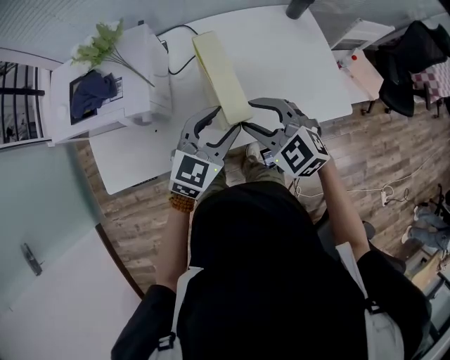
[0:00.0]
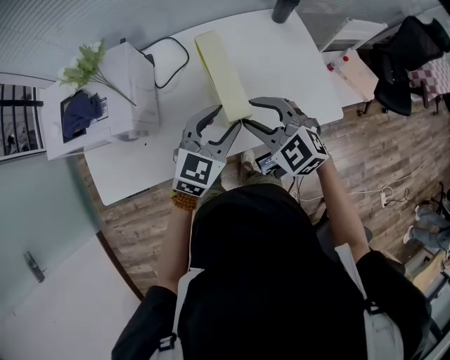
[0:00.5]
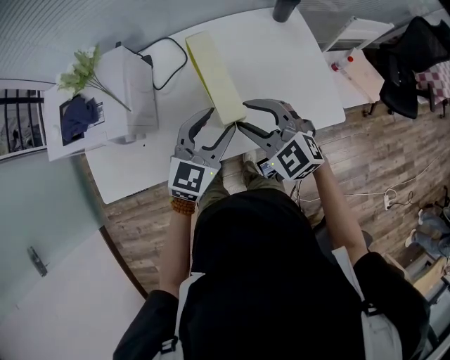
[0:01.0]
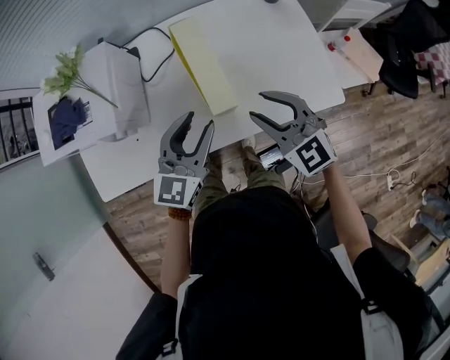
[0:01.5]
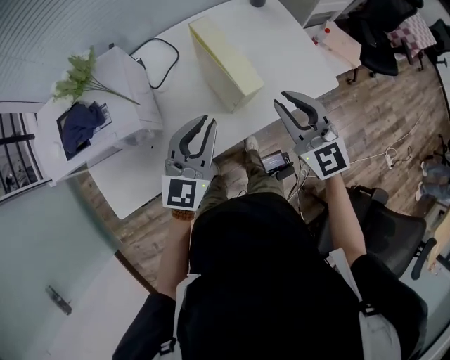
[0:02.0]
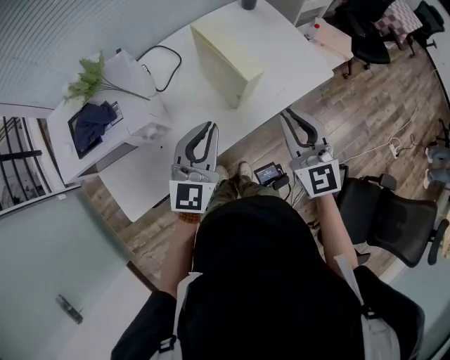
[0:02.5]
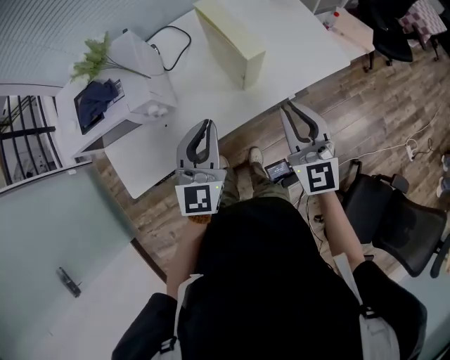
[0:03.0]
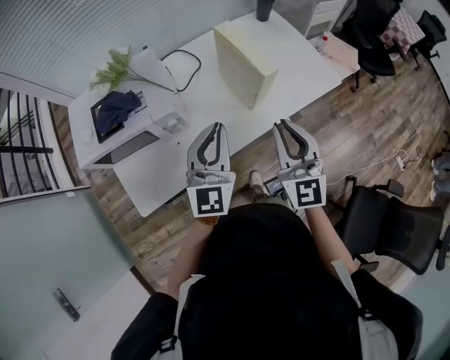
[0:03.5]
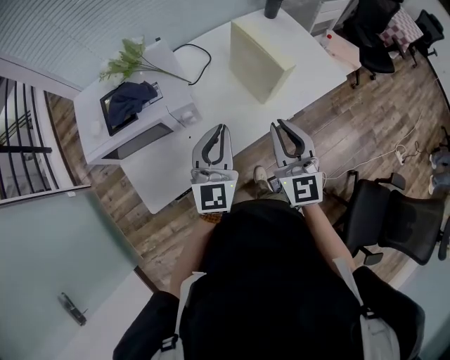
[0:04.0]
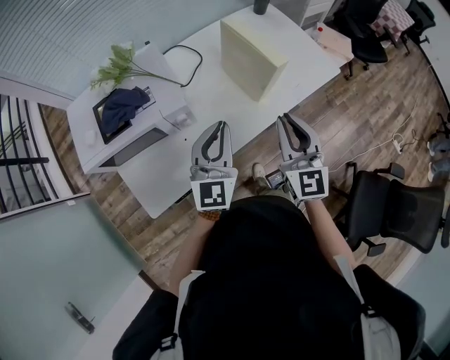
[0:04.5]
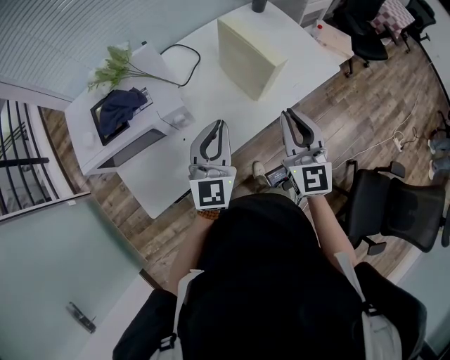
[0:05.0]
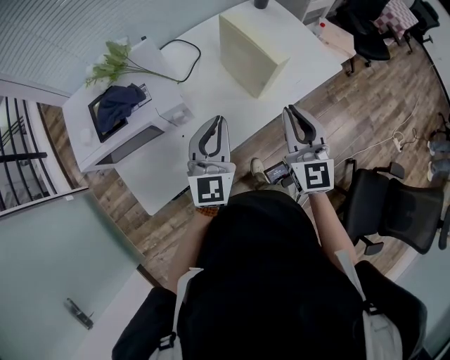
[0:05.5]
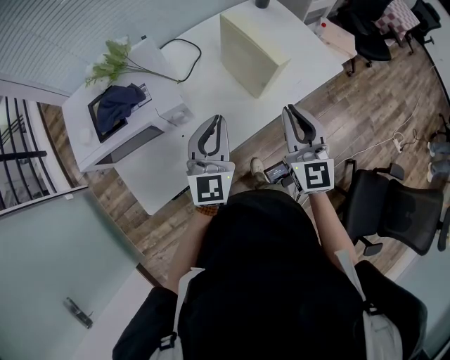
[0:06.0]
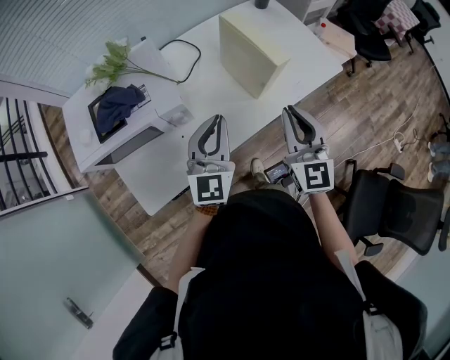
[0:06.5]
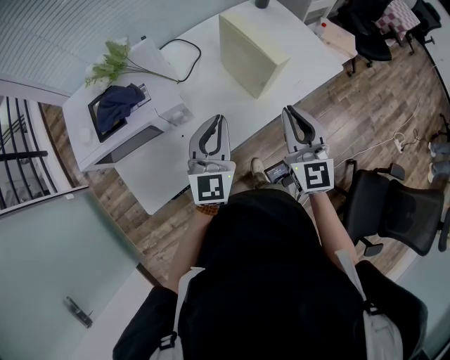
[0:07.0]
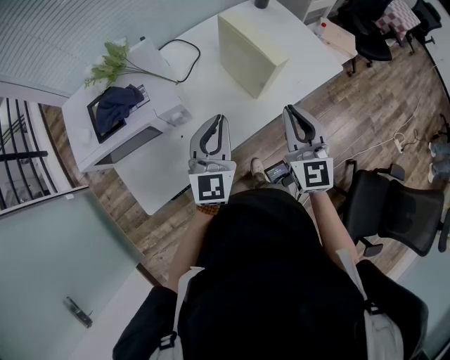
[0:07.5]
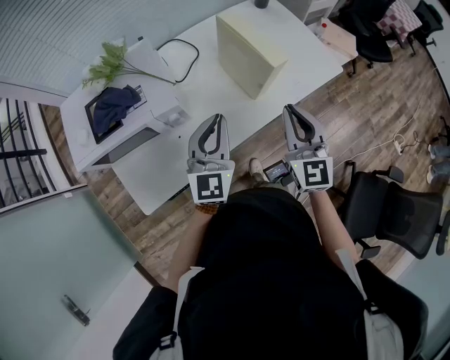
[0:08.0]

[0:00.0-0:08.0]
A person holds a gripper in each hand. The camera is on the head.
0:00.0 to 0:02.0: The right gripper goes some 10 cm to the right and upward, changes its angle by some 40 degrees, and closes up; the left gripper goes to the right and returns, approximately 5 cm each way, and closes.
0:02.0 to 0:04.0: The left gripper shifts approximately 15 cm to the left and backward. The right gripper heads backward and to the left, covering some 20 cm, and turns by about 20 degrees.
0:04.0 to 0:06.0: The right gripper moves approximately 5 cm.
0:06.0 to 0:08.0: There are only small adjustments of the grippers.

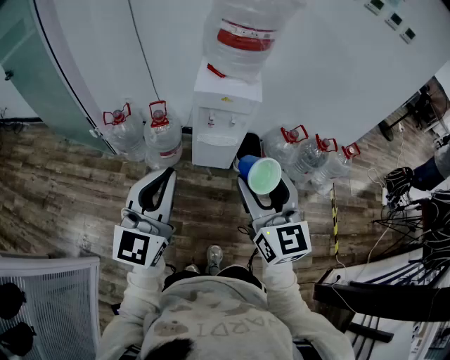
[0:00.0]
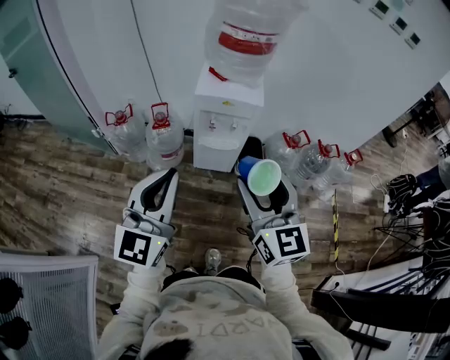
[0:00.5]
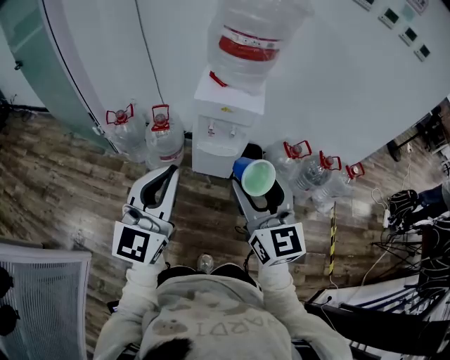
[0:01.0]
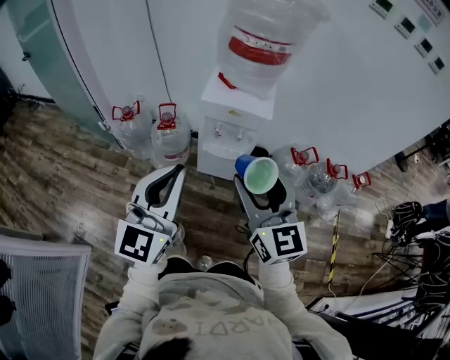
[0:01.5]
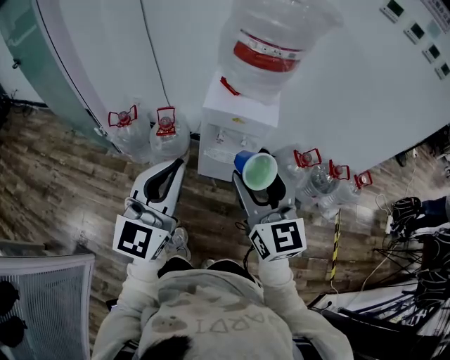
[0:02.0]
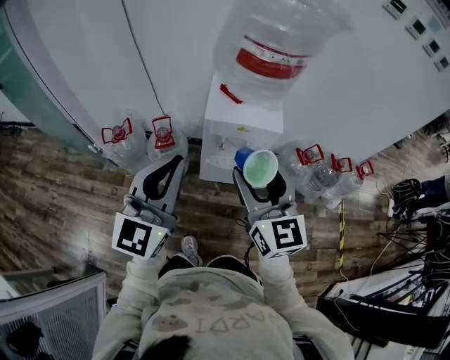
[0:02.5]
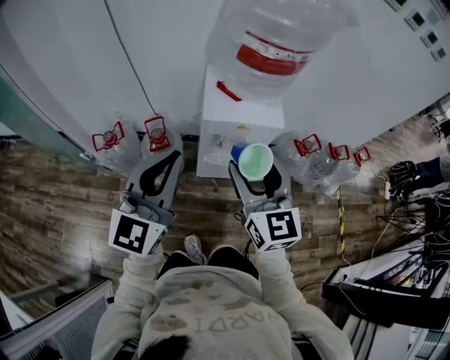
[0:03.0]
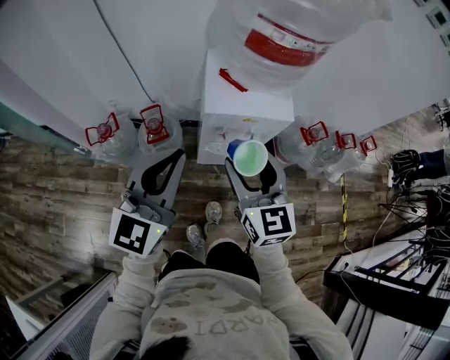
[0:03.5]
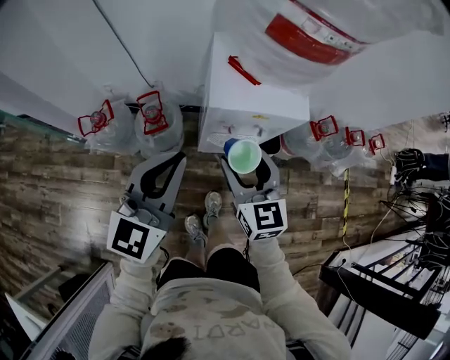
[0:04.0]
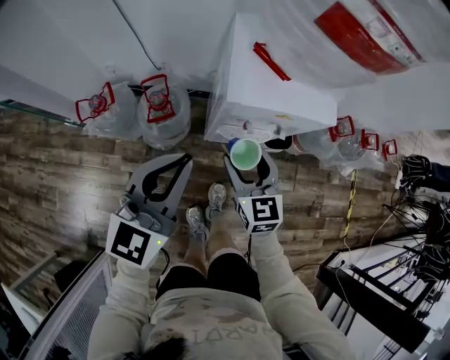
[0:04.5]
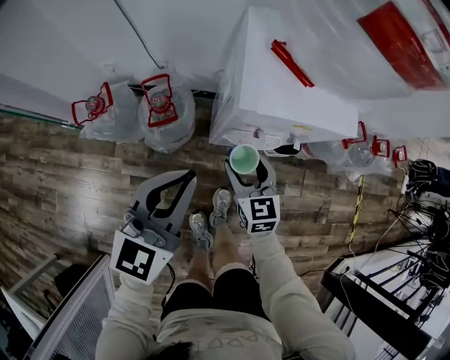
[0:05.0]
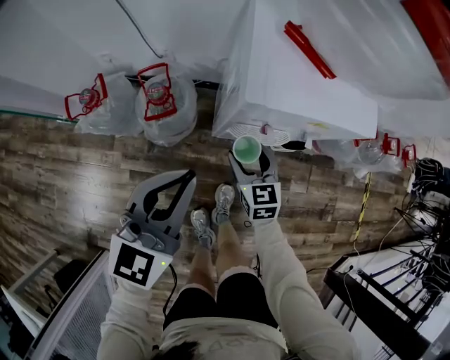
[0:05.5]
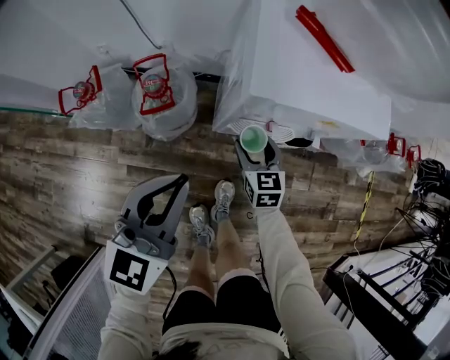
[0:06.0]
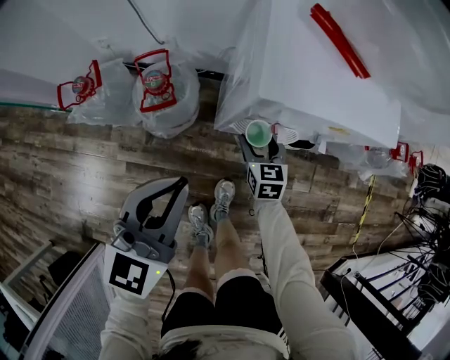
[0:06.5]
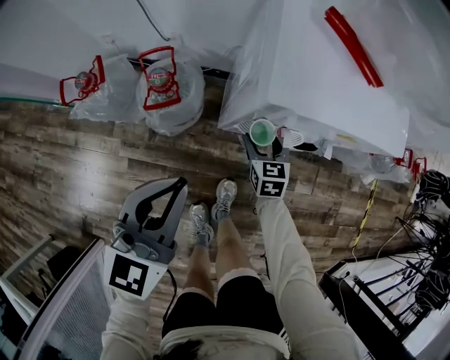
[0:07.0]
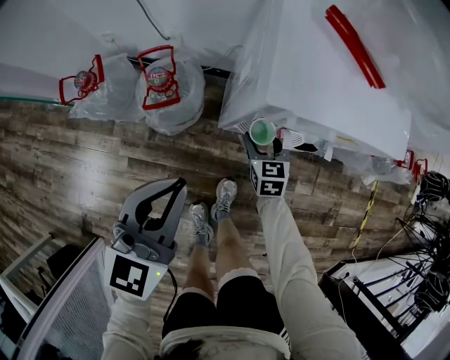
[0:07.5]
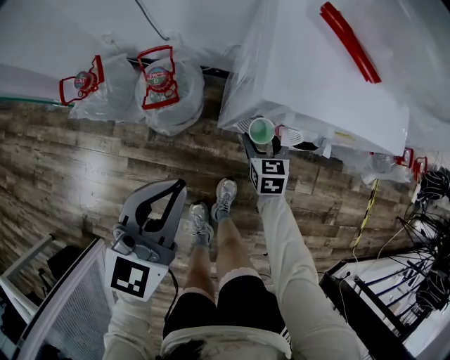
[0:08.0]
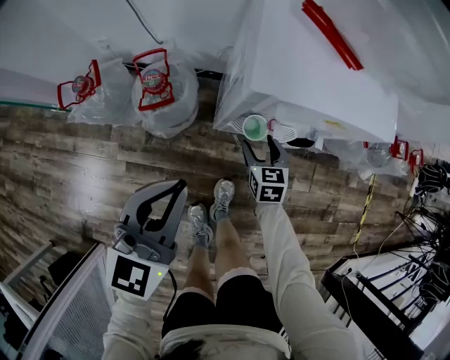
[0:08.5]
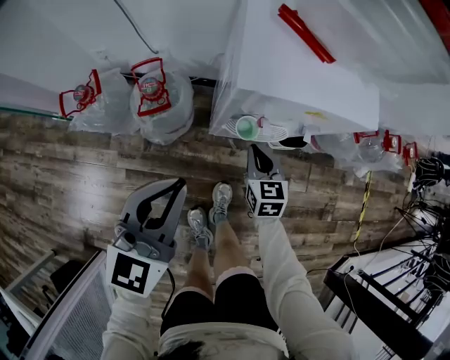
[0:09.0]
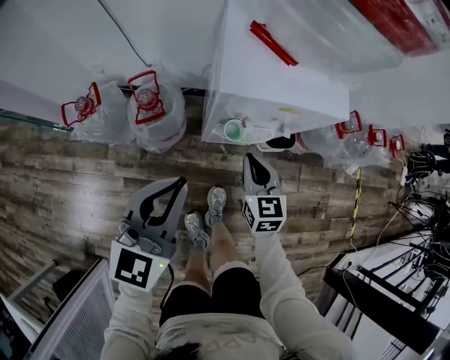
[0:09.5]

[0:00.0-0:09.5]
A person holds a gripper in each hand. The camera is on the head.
0:00.0 to 0:02.0: The grippers both shift forward by roughly 15 cm.
0:02.0 to 0:04.0: The right gripper shifts approximately 30 cm downward, forward and to the left; the left gripper is displaced forward, downward and to the left by roughly 25 cm.
0:04.0 to 0:05.5: The right gripper moves downward, roughly 30 cm. Meanwhile the left gripper shifts approximately 15 cm downward.
0:05.5 to 0:07.5: The right gripper travels downward and forward by approximately 15 cm; the left gripper travels downward by approximately 5 cm.
0:07.5 to 0:09.5: The left gripper shifts roughly 10 cm upward; the right gripper is displaced upward and backward by some 20 cm, and closes up.

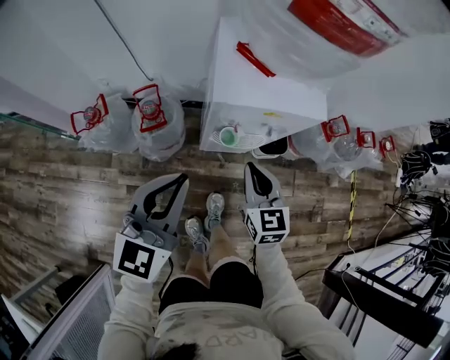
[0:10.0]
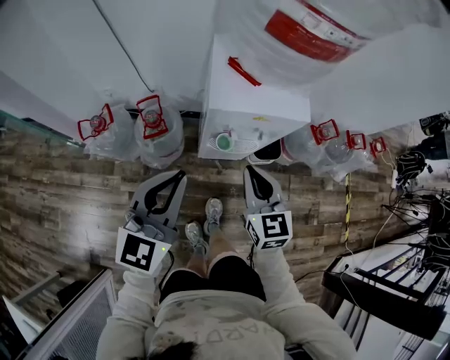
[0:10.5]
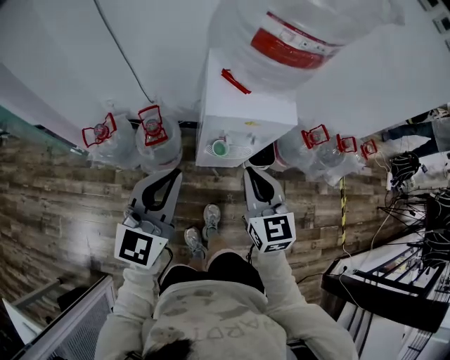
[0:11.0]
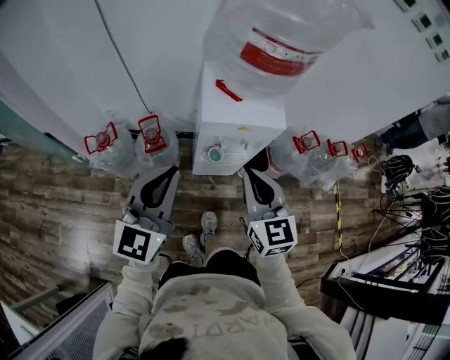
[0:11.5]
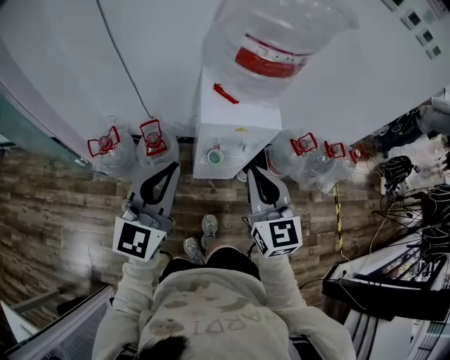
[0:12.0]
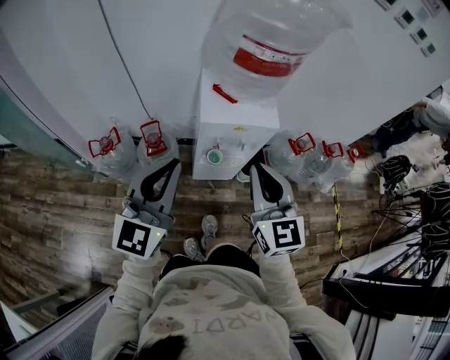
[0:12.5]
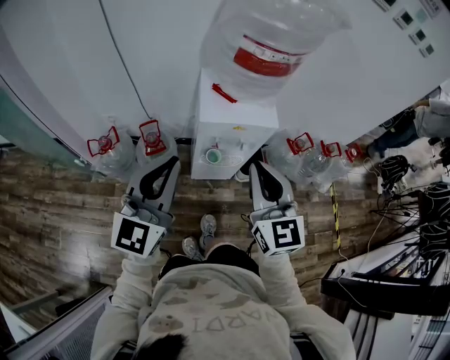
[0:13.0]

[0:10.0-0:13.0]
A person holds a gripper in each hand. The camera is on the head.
0:10.0 to 0:11.5: The left gripper is displaced upward by roughly 15 cm, while the right gripper goes approximately 20 cm upward.
0:11.5 to 0:13.0: The right gripper shifts roughly 10 cm upward. The left gripper is displaced upward by roughly 5 cm.

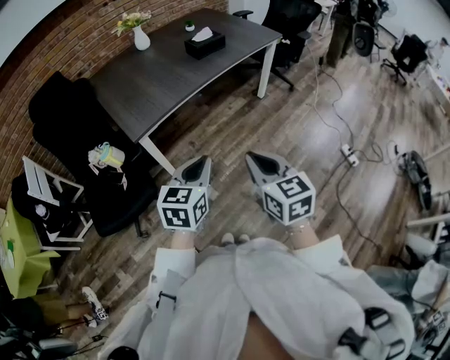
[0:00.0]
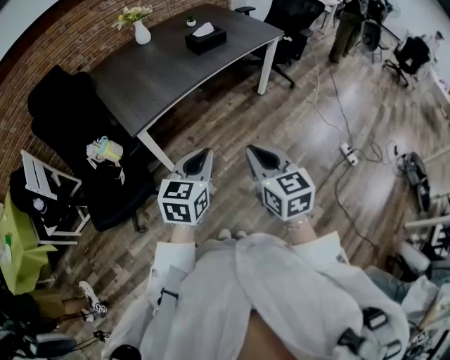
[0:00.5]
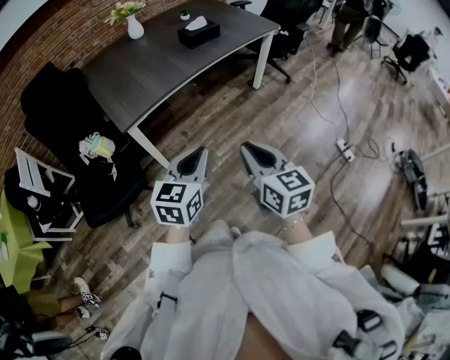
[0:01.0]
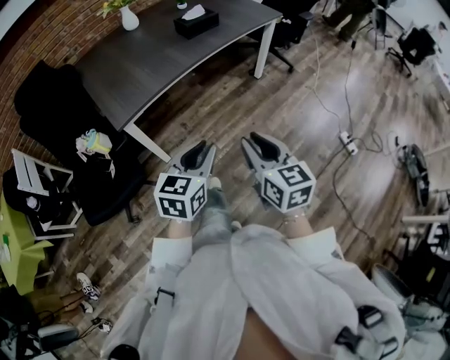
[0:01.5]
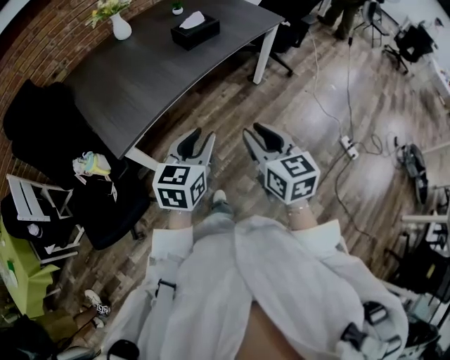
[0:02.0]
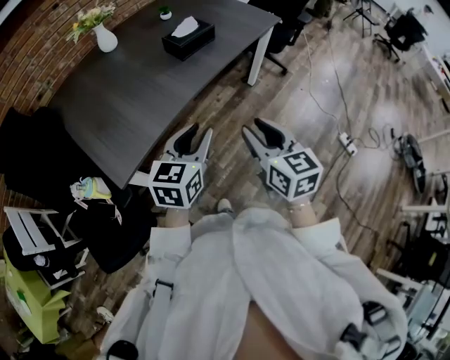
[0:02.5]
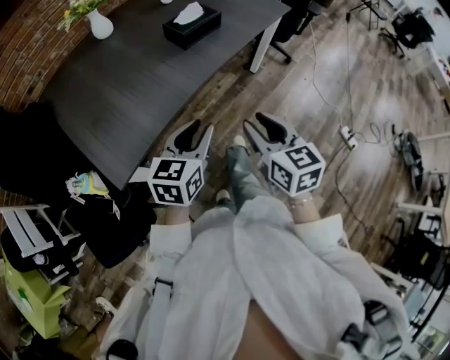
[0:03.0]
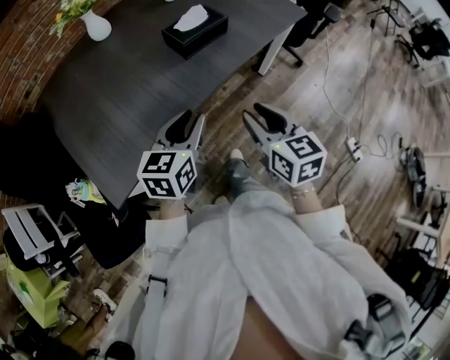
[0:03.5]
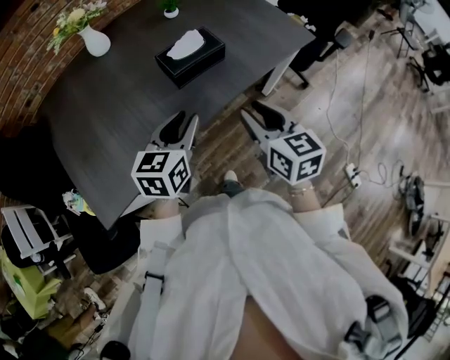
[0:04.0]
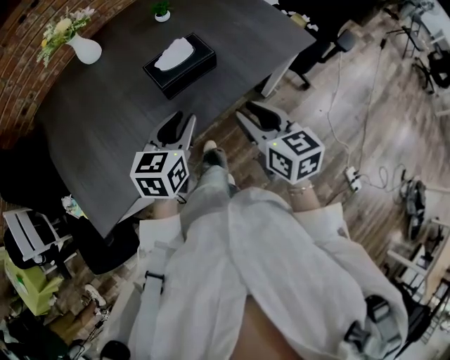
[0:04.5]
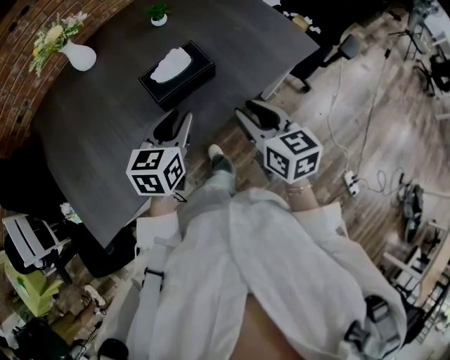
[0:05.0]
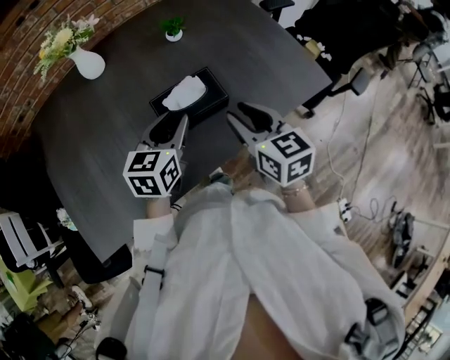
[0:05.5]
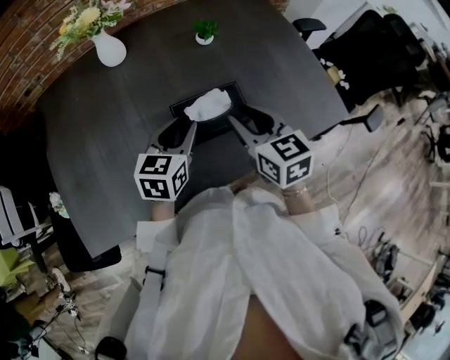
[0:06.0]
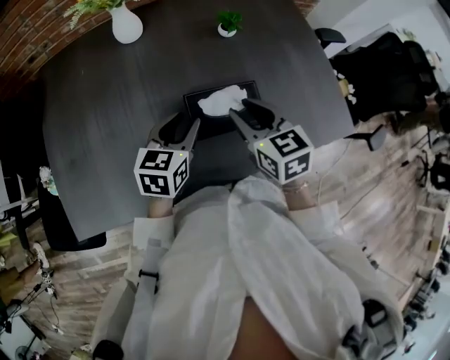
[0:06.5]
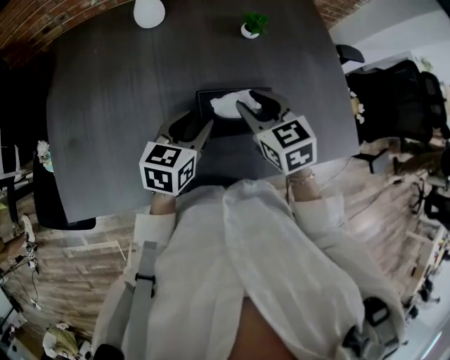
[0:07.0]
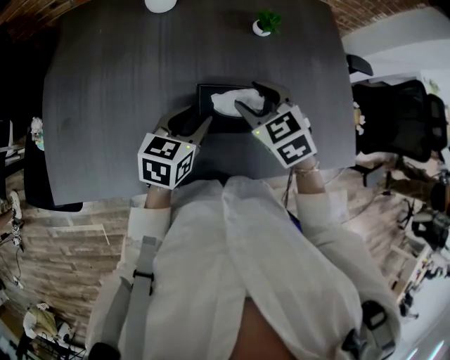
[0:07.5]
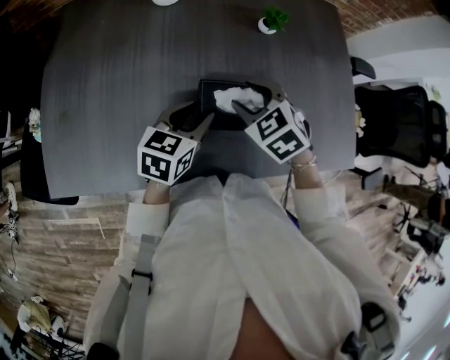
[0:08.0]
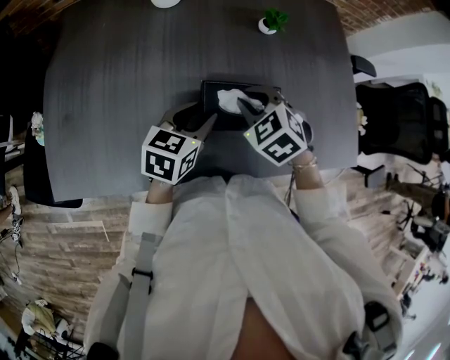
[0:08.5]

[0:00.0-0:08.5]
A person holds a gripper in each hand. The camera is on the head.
0:00.0 to 0:02.0: Both grippers travel together forward, some 15 cm. The right gripper opens up; the left gripper opens up.
0:02.0 to 0:04.0: Both grippers move forward, some 35 cm.
0:04.0 to 0:06.5: Both grippers travel together forward, approximately 25 cm. The right gripper swivels some 30 degrees.
0:06.5 to 0:08.5: The right gripper moves downward, roughly 5 cm, and swivels about 50 degrees.
